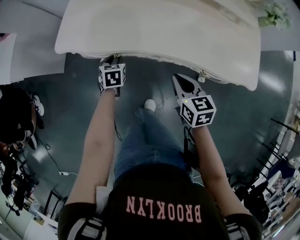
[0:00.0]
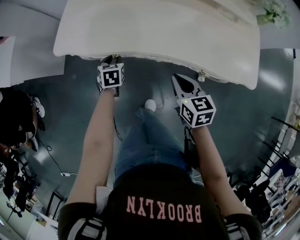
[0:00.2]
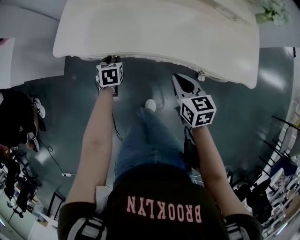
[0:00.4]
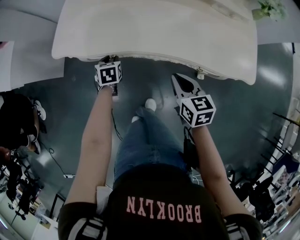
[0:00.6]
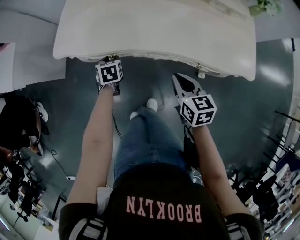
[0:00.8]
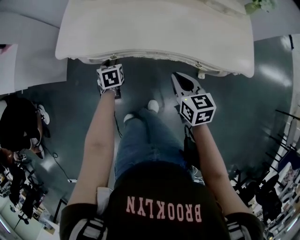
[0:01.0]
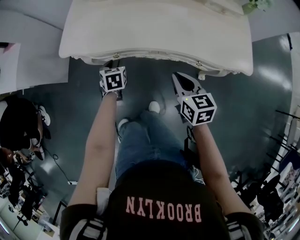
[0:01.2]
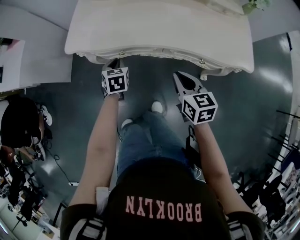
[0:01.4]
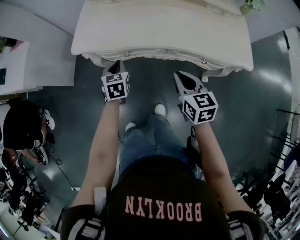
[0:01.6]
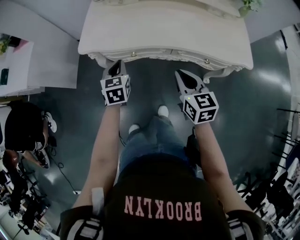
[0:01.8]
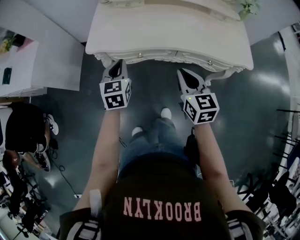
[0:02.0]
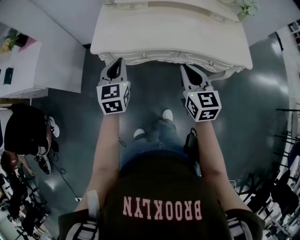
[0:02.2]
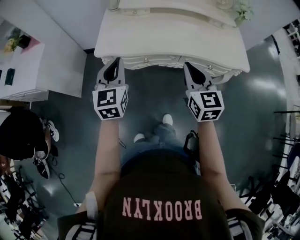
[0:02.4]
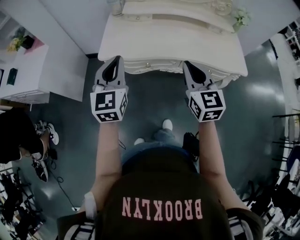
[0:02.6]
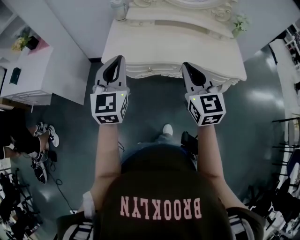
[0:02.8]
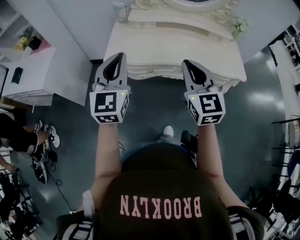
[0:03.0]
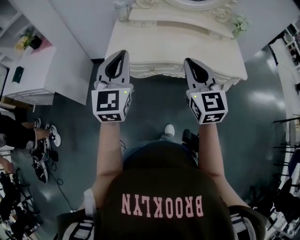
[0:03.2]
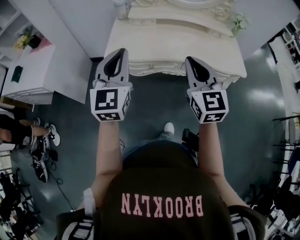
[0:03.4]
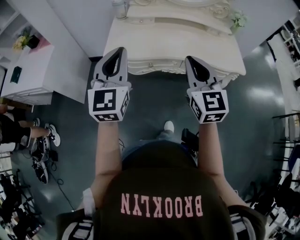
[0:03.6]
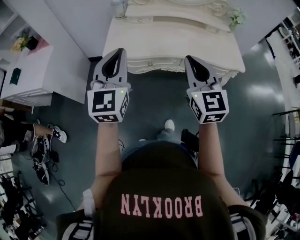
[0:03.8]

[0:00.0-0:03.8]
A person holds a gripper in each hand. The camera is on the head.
0:00.0 to 0:01.2: The right gripper shifts by some 5 cm.
0:01.2 to 0:02.6: The right gripper moves upward and to the left, about 25 cm, and swivels about 30 degrees. The left gripper is displaced upward by about 35 cm, angles its fingers upward, by roughly 50 degrees, and closes.
0:02.6 to 0:03.8: Both grippers move upward and backward, roughly 10 cm.

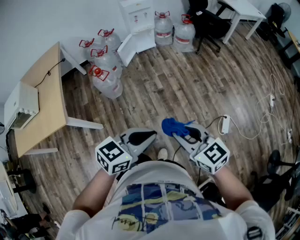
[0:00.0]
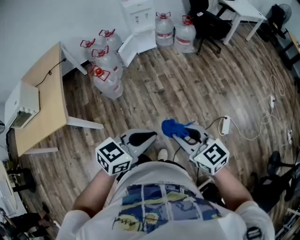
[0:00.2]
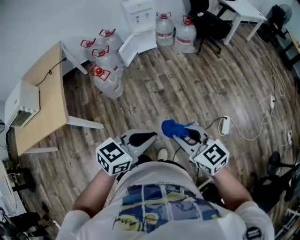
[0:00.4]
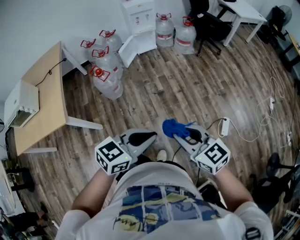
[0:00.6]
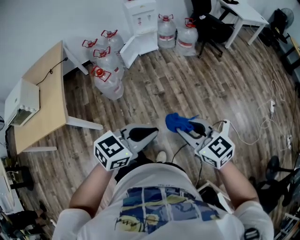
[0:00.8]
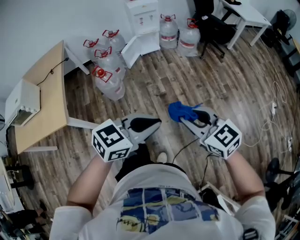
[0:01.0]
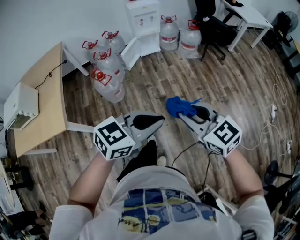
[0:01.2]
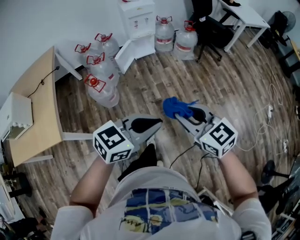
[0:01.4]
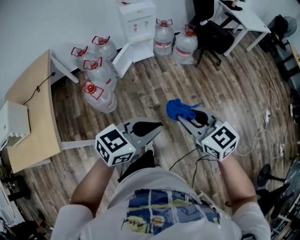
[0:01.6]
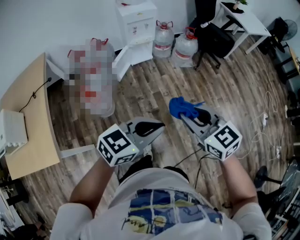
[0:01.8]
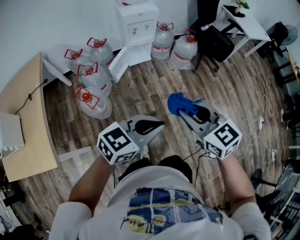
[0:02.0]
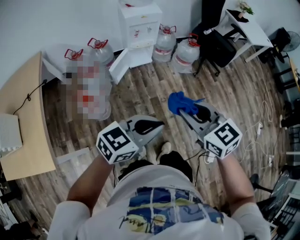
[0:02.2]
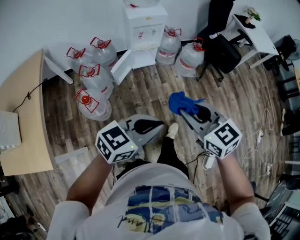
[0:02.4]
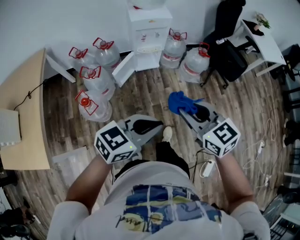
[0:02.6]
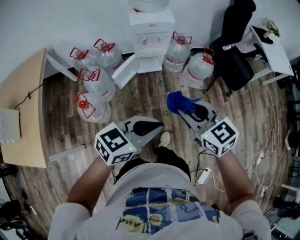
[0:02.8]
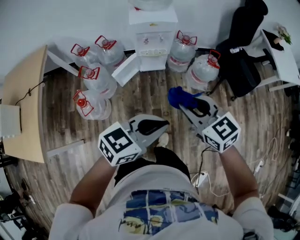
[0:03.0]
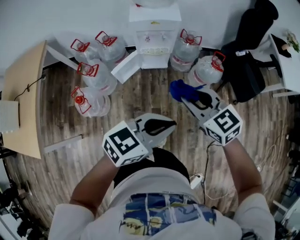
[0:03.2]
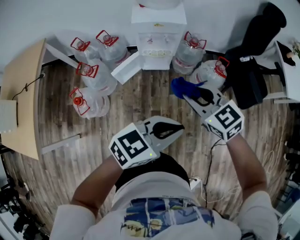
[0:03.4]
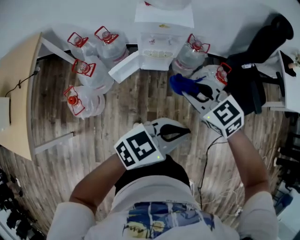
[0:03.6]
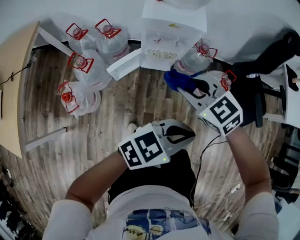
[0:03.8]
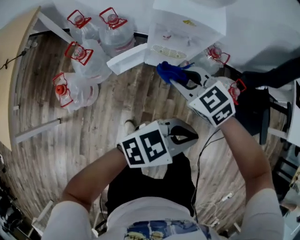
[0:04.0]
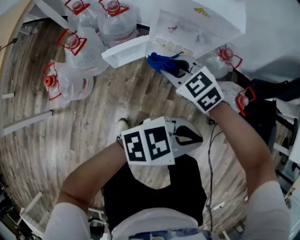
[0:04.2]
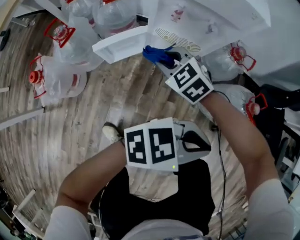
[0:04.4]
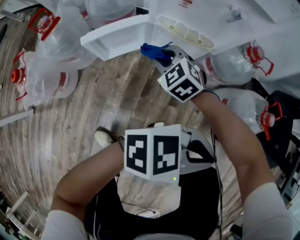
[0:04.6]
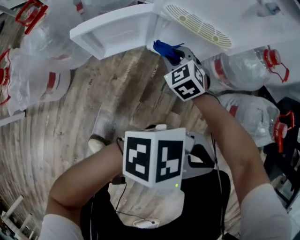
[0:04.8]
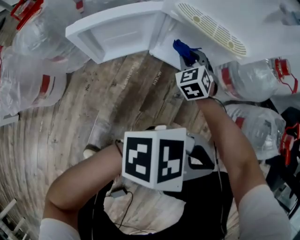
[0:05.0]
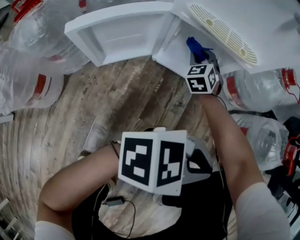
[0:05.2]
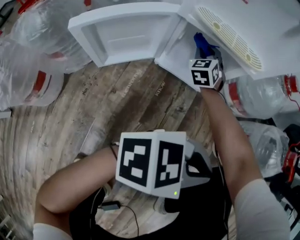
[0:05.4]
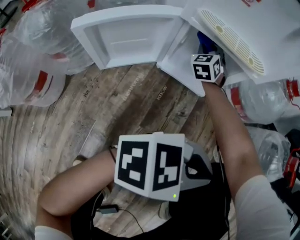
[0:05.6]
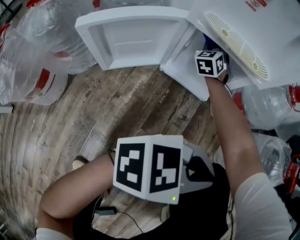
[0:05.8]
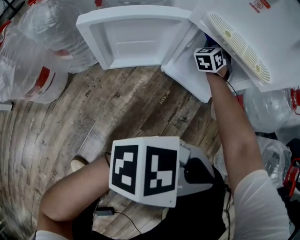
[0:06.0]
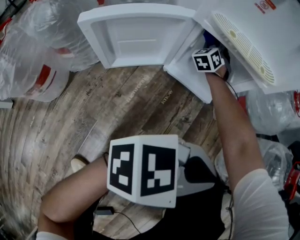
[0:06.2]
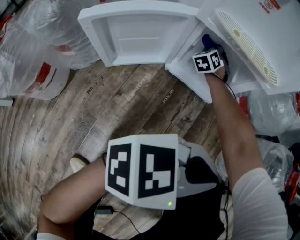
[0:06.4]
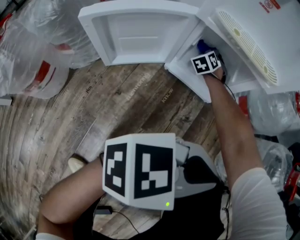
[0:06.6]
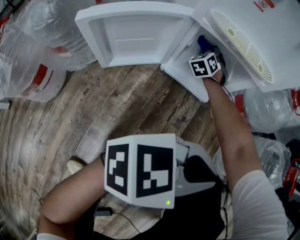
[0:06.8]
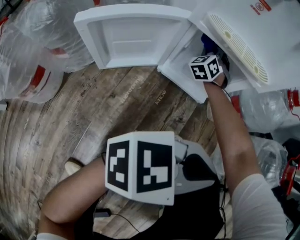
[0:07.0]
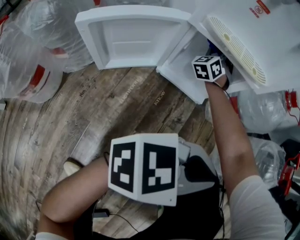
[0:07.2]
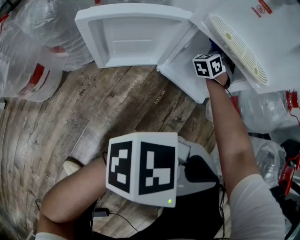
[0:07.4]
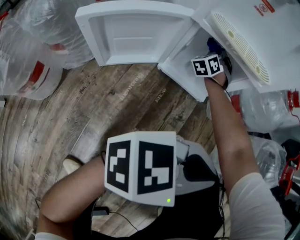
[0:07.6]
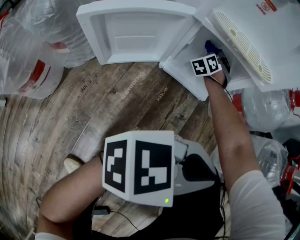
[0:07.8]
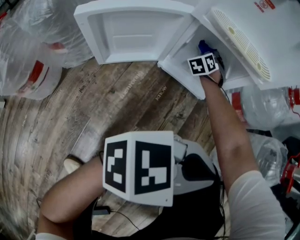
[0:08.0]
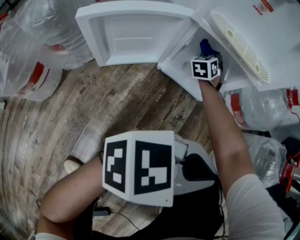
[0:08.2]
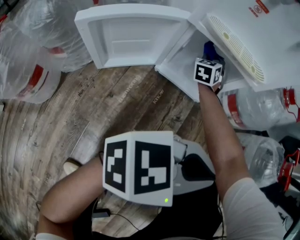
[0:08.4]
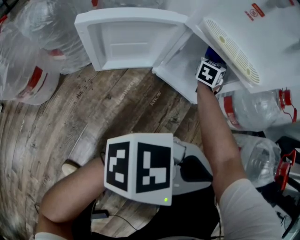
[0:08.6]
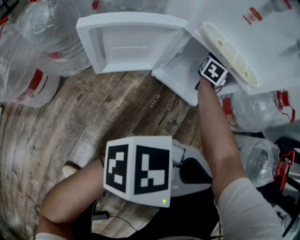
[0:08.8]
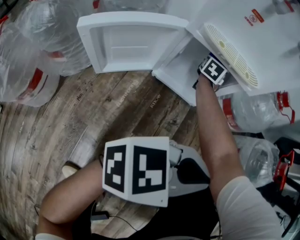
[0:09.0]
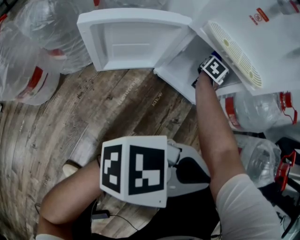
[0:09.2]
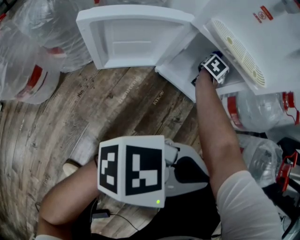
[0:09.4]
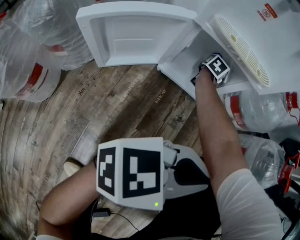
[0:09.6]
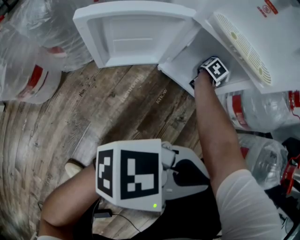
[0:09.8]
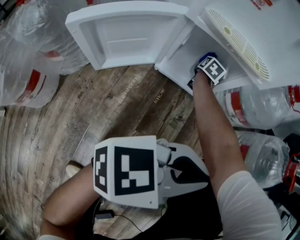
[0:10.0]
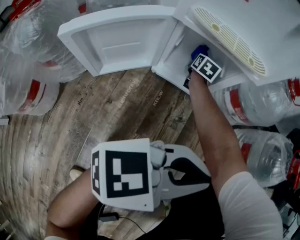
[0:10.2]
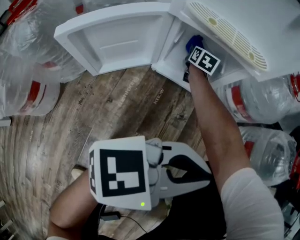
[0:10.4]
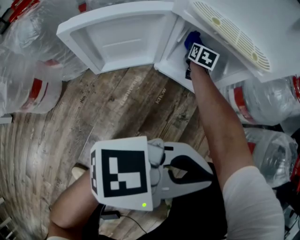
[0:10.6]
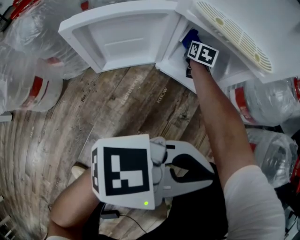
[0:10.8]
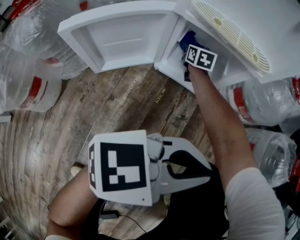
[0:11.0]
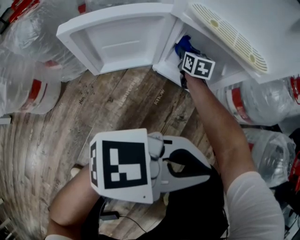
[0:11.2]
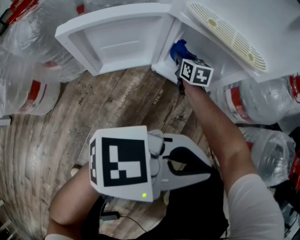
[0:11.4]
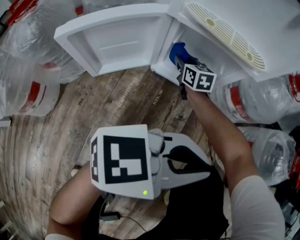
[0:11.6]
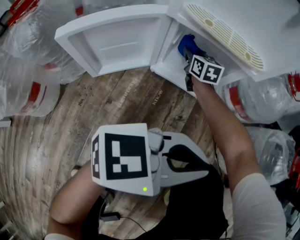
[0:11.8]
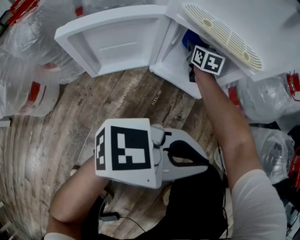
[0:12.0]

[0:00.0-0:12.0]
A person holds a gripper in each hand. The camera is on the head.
0:00.0 to 0:01.6: Both grippers travel together forward, about 25 cm.
0:01.6 to 0:03.0: Both grippers are carried forward, some 50 cm.
0:03.0 to 0:04.4: Both grippers travel together downward, approximately 40 cm. The right gripper changes its angle by roughly 40 degrees.
0:04.4 to 0:06.0: Both grippers travel together downward, approximately 30 cm. The right gripper changes its angle by roughly 50 degrees.
0:06.0 to 0:07.6: The right gripper goes up and down, approximately 15 cm each way, reversing 2 times.
0:07.6 to 0:09.0: The right gripper heads upward, covering roughly 5 cm, and rolls clockwise, seen from behind, by approximately 60 degrees.
0:09.0 to 0:10.4: The right gripper goes roughly 10 cm downward.
0:10.4 to 0:12.0: The right gripper goes approximately 5 cm upward, and reaches approximately 10 cm backward, then returns.

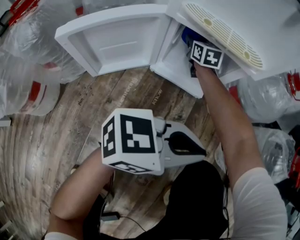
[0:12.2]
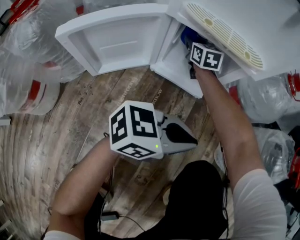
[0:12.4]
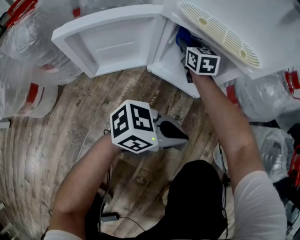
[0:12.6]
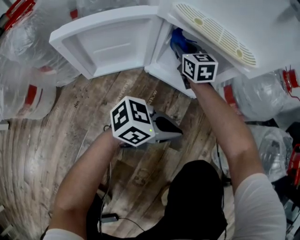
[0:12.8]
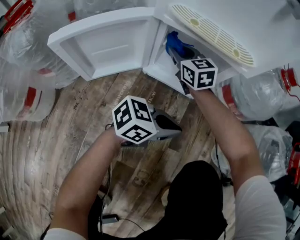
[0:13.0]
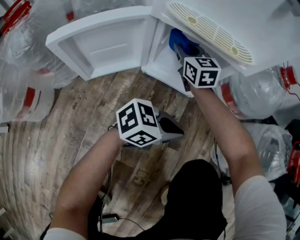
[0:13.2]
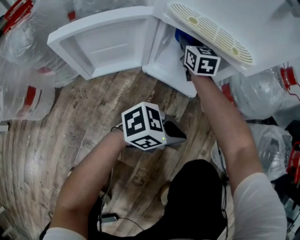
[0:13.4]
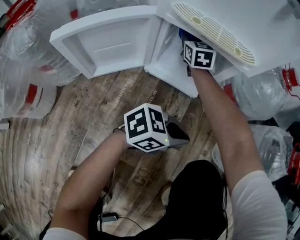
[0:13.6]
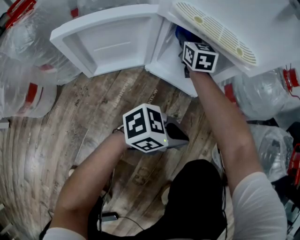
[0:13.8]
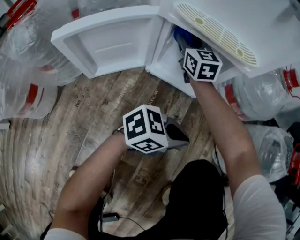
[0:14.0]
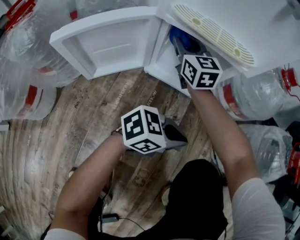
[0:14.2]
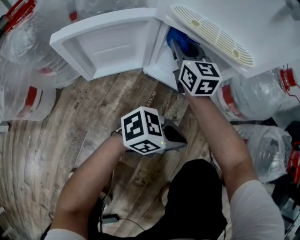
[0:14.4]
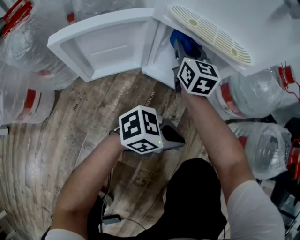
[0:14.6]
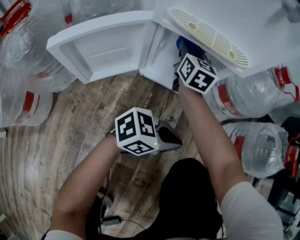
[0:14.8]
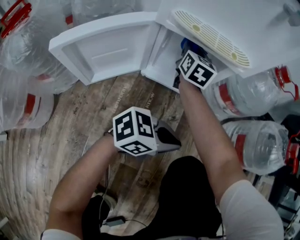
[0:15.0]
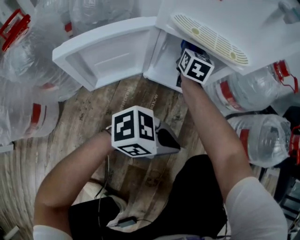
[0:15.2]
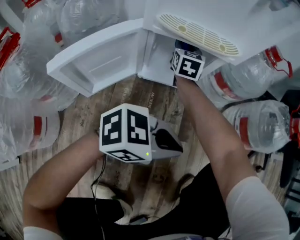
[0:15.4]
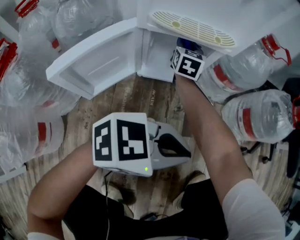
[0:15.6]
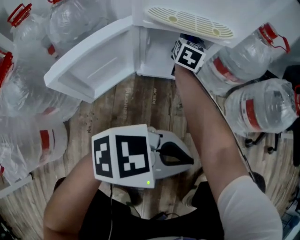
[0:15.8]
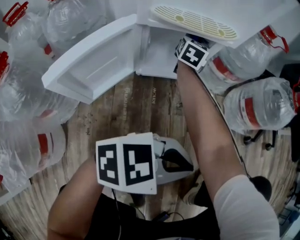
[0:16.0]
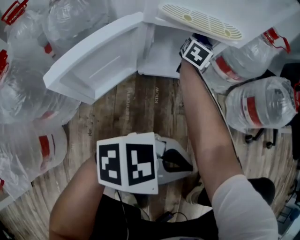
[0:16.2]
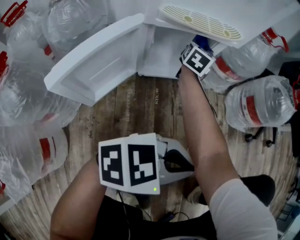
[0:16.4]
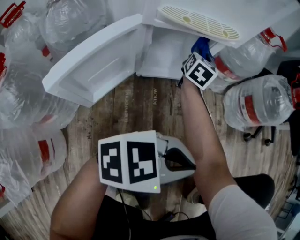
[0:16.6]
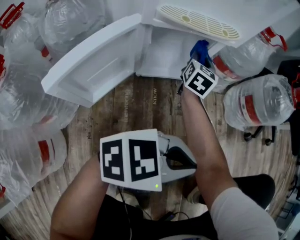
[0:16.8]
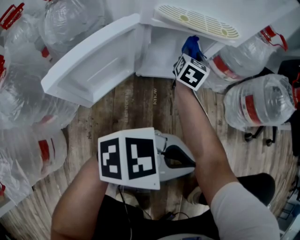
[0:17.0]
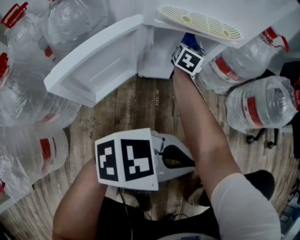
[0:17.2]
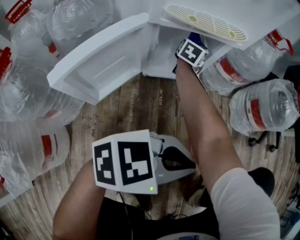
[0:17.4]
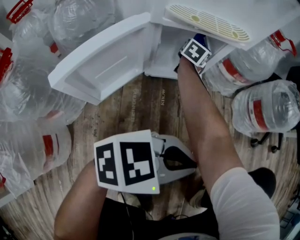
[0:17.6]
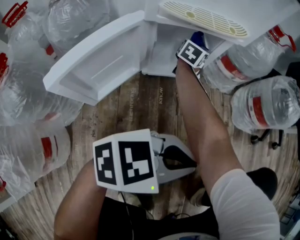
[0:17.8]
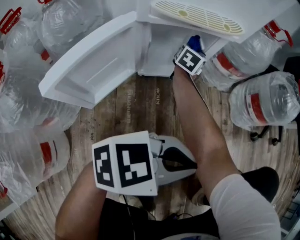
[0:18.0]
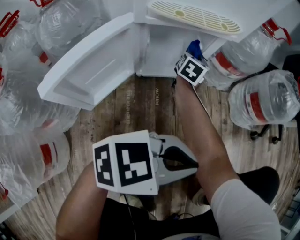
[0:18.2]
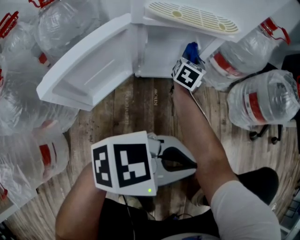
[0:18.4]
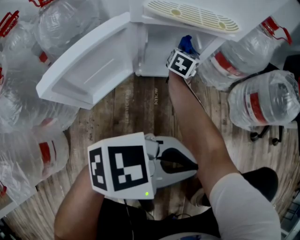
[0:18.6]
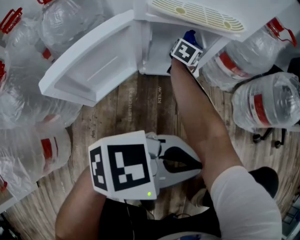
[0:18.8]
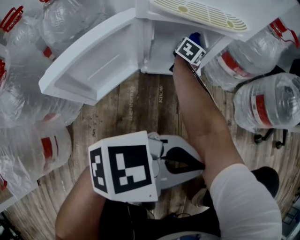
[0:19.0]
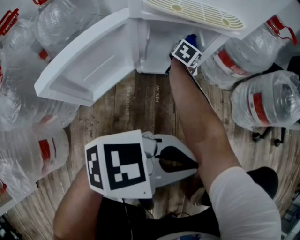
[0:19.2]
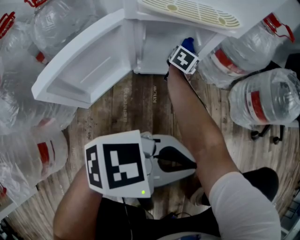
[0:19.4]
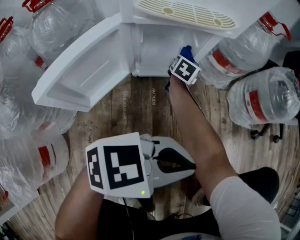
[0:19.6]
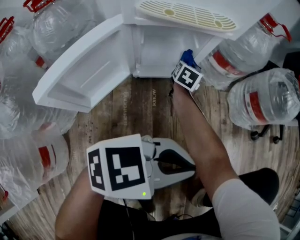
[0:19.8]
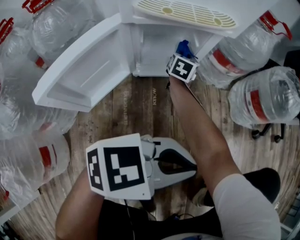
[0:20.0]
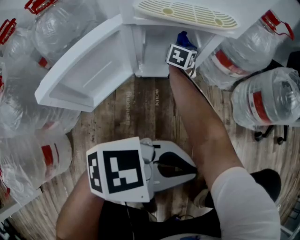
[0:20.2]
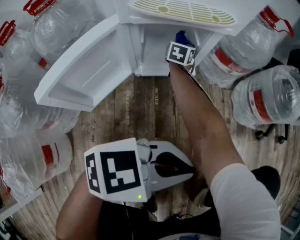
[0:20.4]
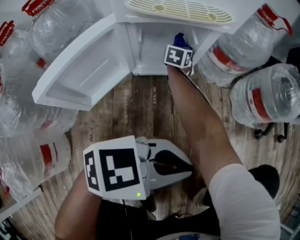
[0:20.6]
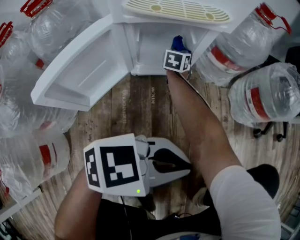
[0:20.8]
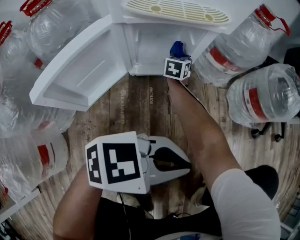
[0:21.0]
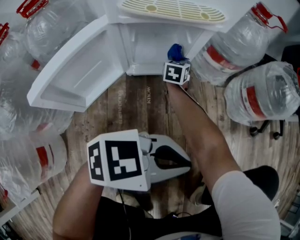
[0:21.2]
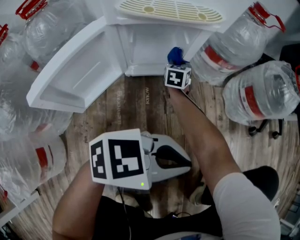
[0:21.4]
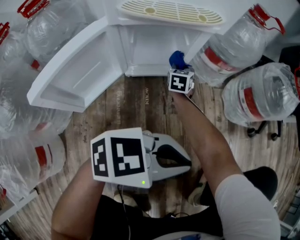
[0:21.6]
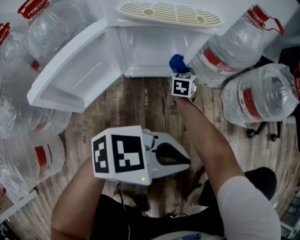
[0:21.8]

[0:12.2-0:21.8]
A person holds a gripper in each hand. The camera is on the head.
0:12.2 to 0:13.8: The right gripper reaches roughly 10 cm backward, then returns; the left gripper shifts approximately 15 cm downward.
0:13.8 to 0:15.4: The right gripper ends up roughly 10 cm from where it was, and rotates roughly 30 degrees. Meanwhile the left gripper travels upward by about 10 cm, and turns by about 20 degrees.
0:15.4 to 0:17.0: The left gripper is displaced backward by approximately 5 cm, while the right gripper moves to the right, some 10 cm, and changes its angle by approximately 30 degrees.
0:17.0 to 0:18.6: The right gripper moves left and right over some 10 cm, changing direction 2 times.
0:18.6 to 0:20.2: The right gripper goes to the right and returns, approximately 5 cm each way.
0:20.2 to 0:21.8: The right gripper shifts approximately 10 cm to the right and downward.
